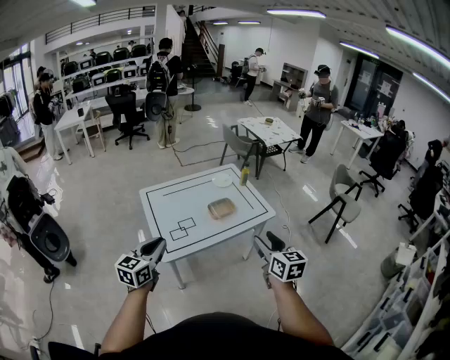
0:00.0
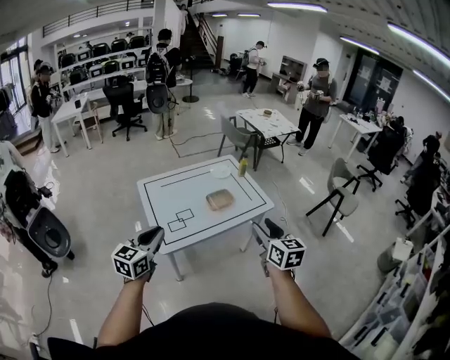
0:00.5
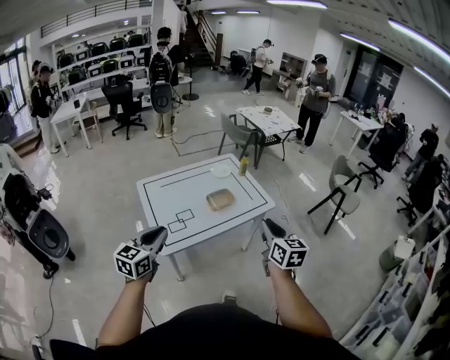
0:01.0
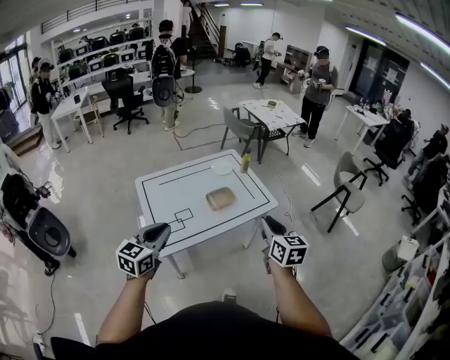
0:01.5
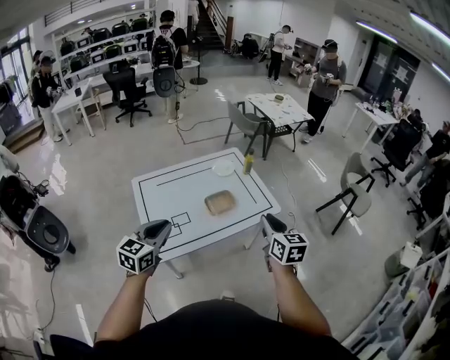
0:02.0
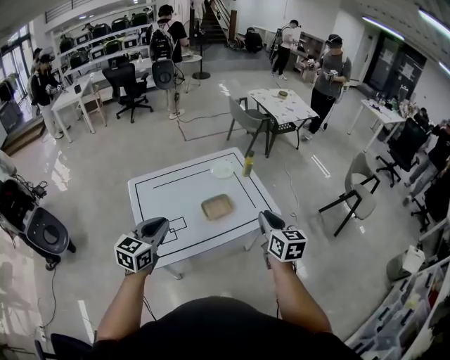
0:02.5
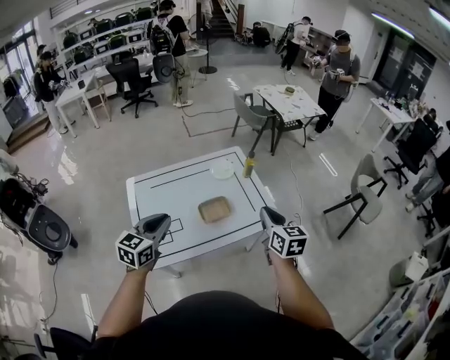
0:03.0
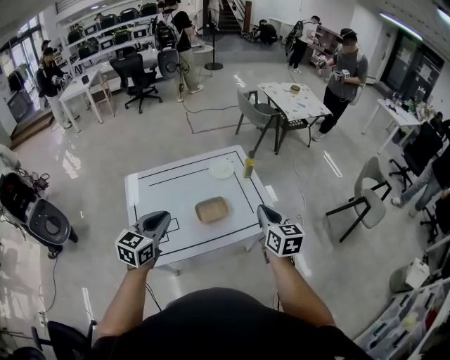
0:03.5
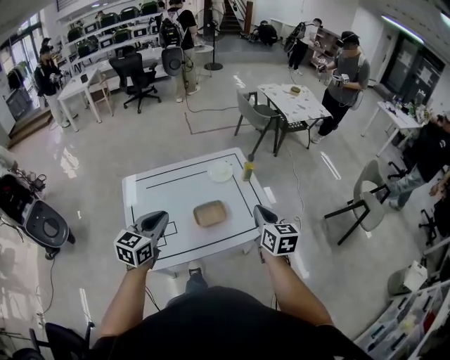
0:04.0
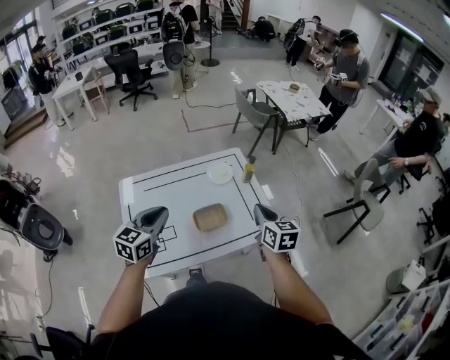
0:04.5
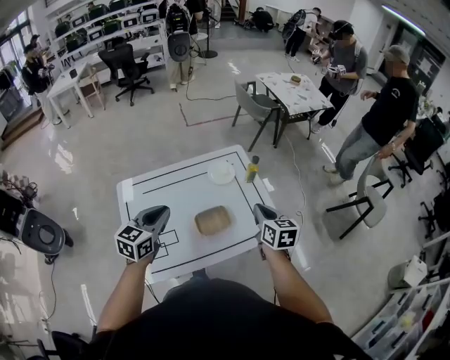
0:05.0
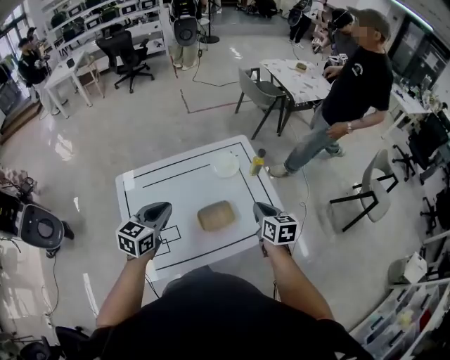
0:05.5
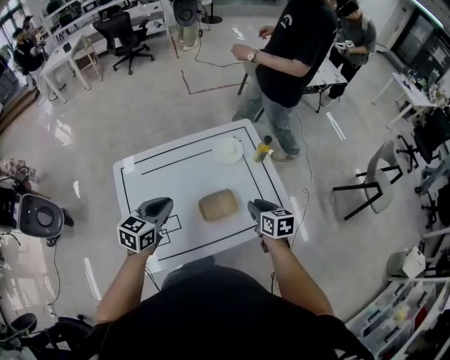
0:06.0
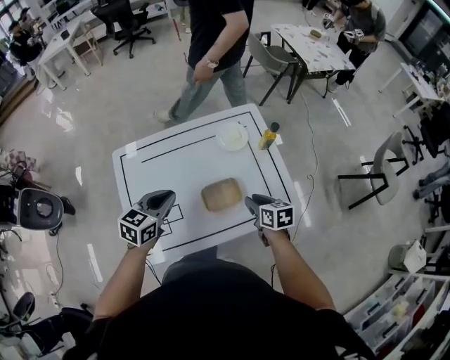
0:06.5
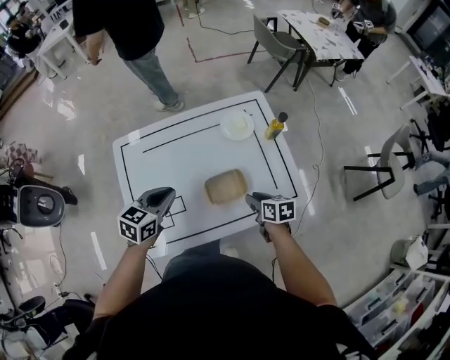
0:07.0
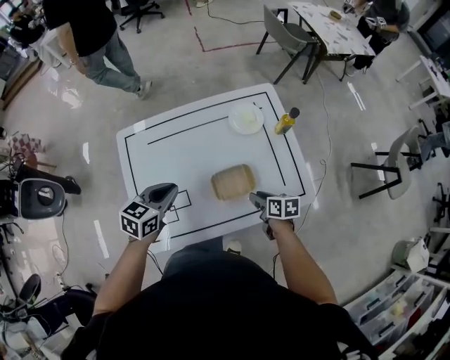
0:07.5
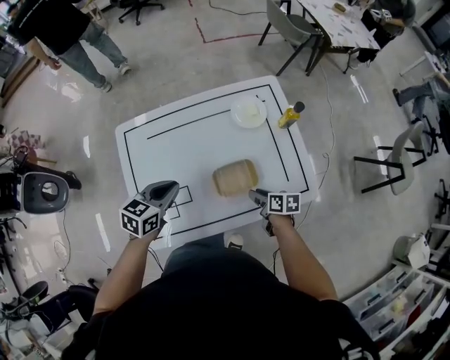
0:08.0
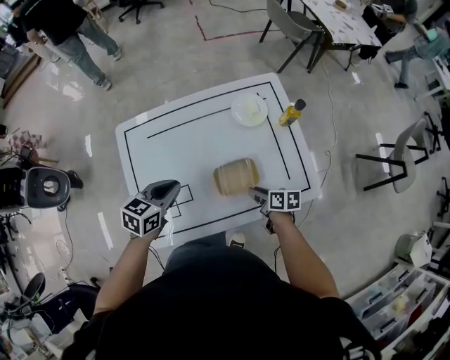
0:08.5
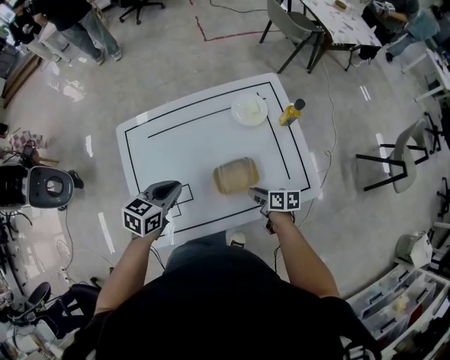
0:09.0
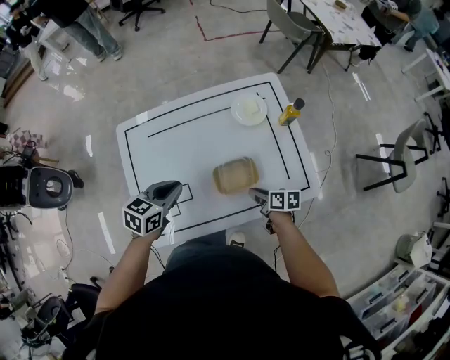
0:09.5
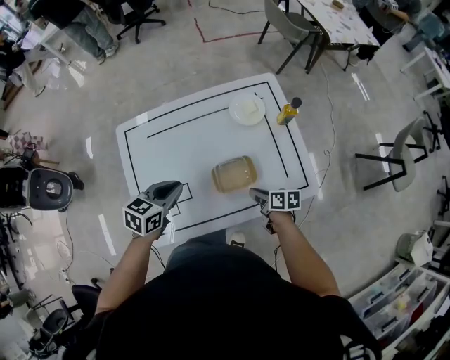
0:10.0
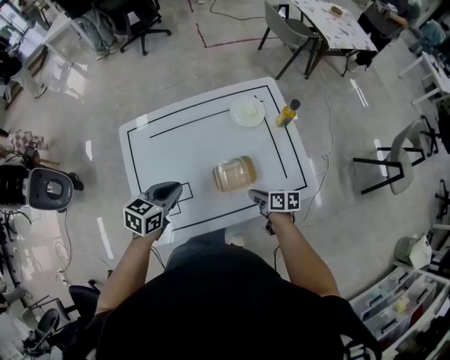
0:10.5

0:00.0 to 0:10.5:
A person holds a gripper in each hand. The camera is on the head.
0:00.0 to 0:02.0: Both grippers move forward, roughly 20 cm. The right gripper closes.
0:02.0 to 0:04.0: The left gripper goes about 20 cm forward and to the right, while the right gripper goes about 20 cm forward.
0:04.0 to 0:06.5: The left gripper is displaced forward and downward by approximately 25 cm, while the right gripper shifts some 30 cm downward and forward, rotates approximately 30 degrees, and opens up.
0:06.5 to 0:08.5: The right gripper moves downward, roughly 10 cm, and turns by roughly 20 degrees. Meanwhile the left gripper goes some 5 cm downward.
0:08.5 to 0:10.5: There are only small adjustments of the grippers.

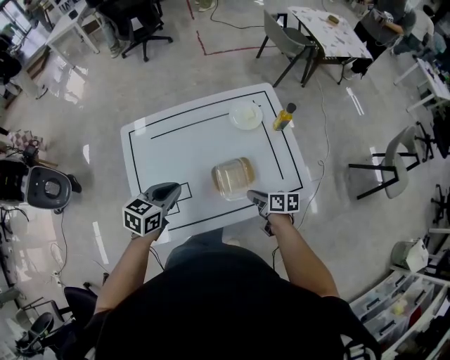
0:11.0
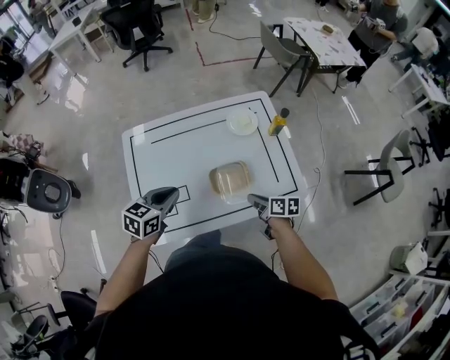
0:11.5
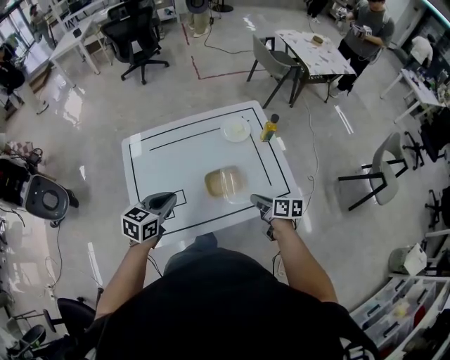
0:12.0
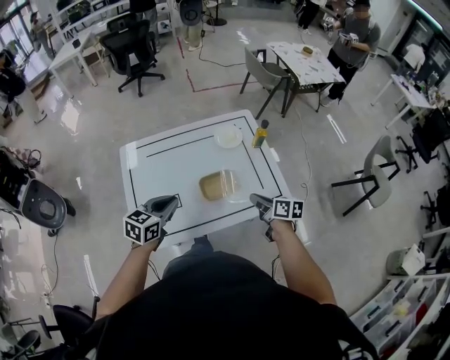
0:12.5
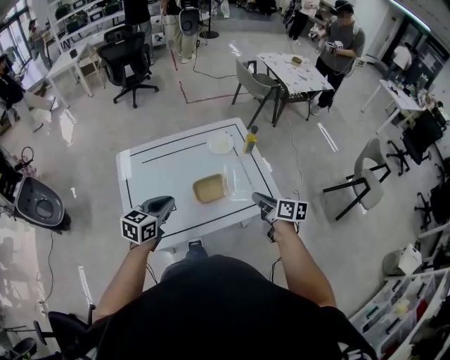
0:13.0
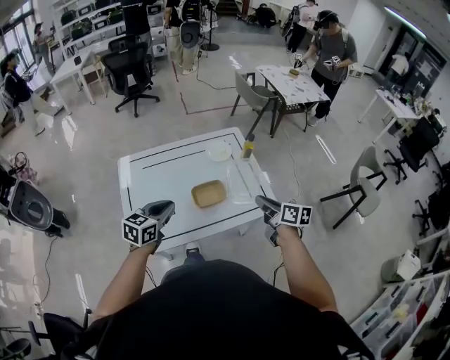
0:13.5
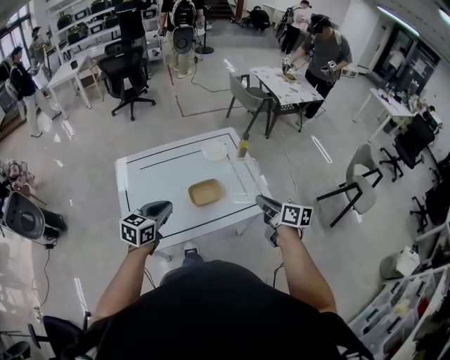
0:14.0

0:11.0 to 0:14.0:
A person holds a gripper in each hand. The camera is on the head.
0:11.0 to 0:12.5: The right gripper goes about 15 cm upward, to the right and backward, while the left gripper travels backward and upward by about 10 cm.
0:12.5 to 0:14.0: The right gripper moves upward, backward and to the right, roughly 15 cm; the left gripper travels backward by roughly 5 cm.

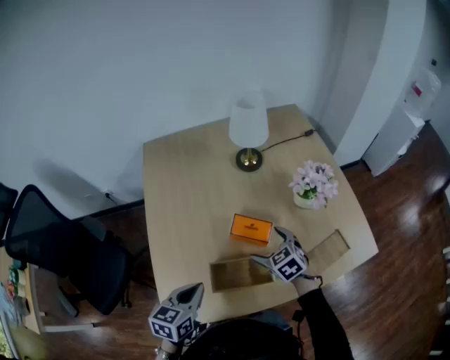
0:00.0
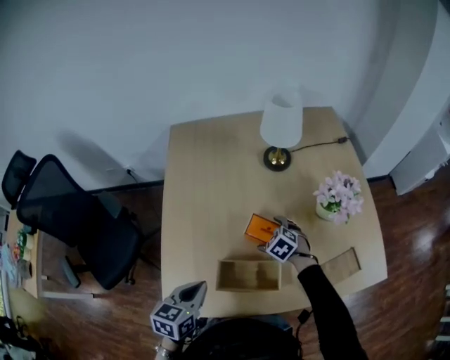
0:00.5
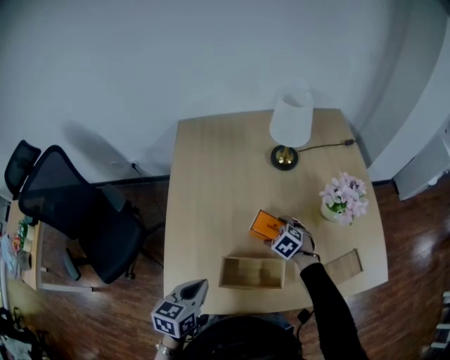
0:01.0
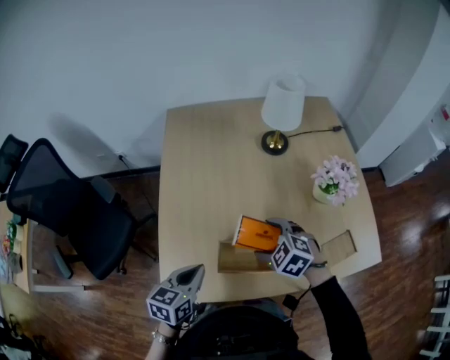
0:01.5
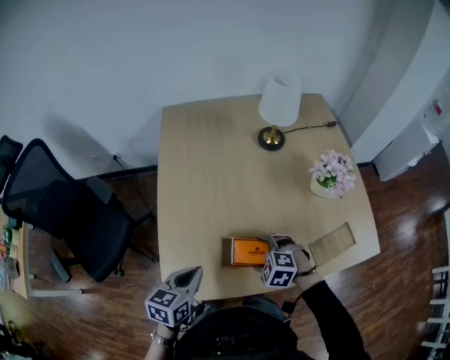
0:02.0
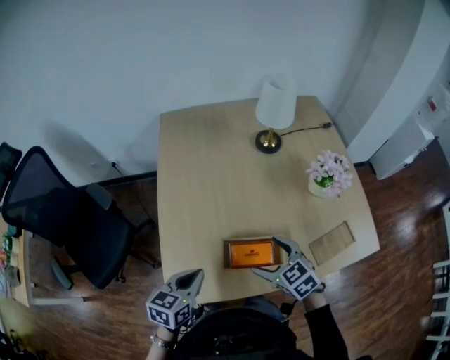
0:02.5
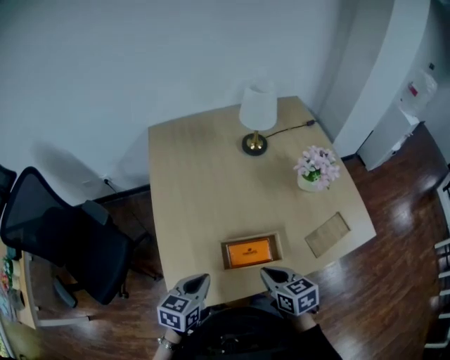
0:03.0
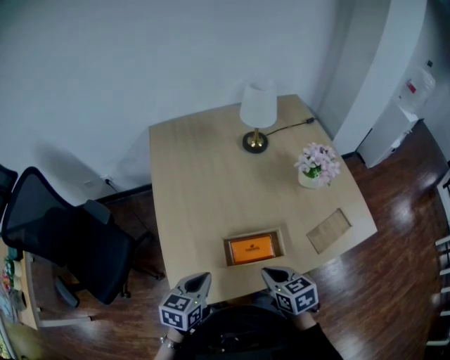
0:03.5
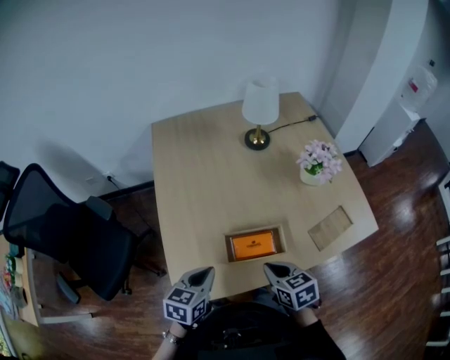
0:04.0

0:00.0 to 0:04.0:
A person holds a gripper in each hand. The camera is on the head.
0:00.0 to 0:02.0: The right gripper shifts some 10 cm backward and to the left, and changes its angle by roughly 40 degrees.
0:02.0 to 0:04.0: The right gripper moves upward and backward, some 10 cm, twists some 60 degrees clockwise, seen from behind, and closes its fingers.

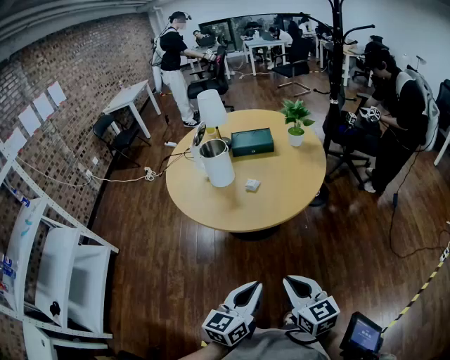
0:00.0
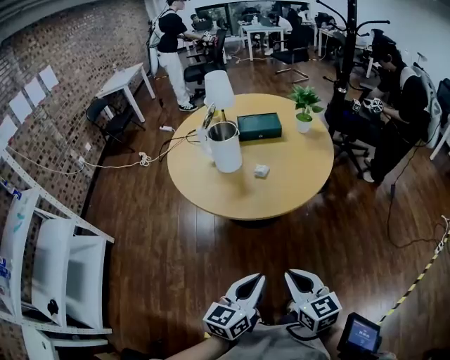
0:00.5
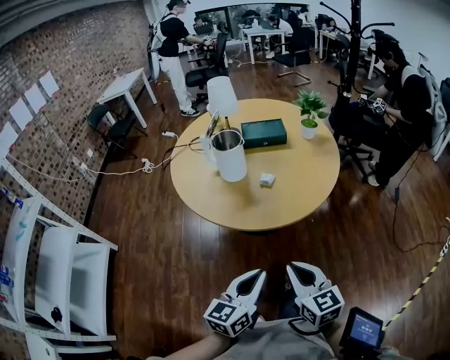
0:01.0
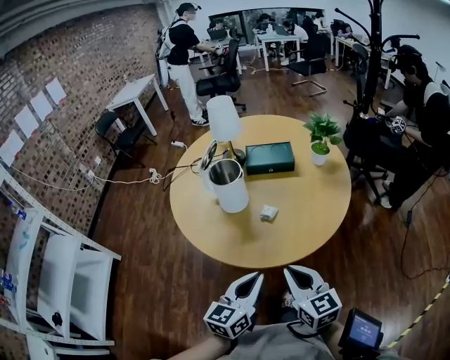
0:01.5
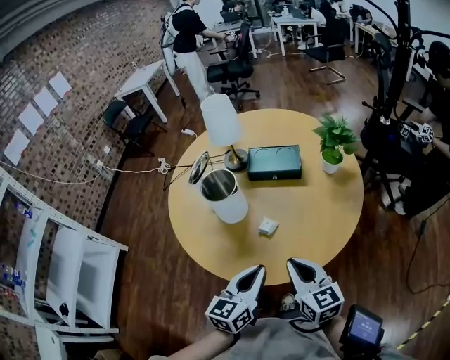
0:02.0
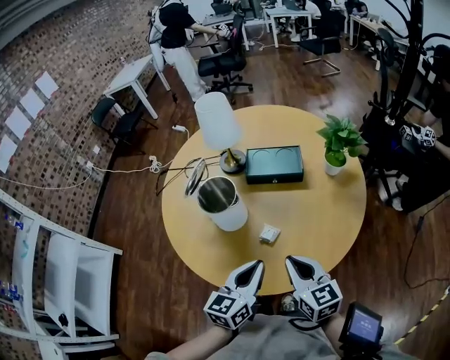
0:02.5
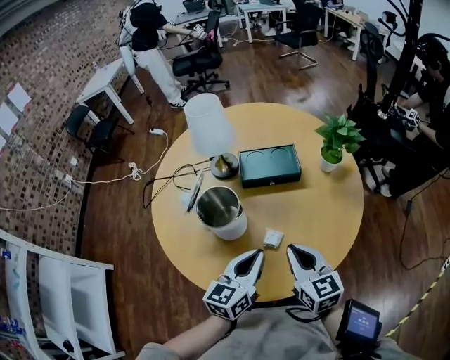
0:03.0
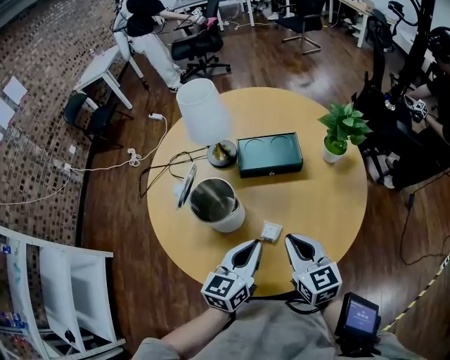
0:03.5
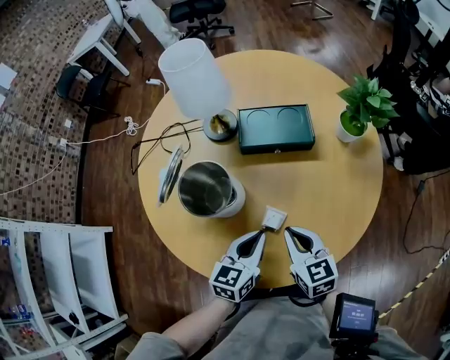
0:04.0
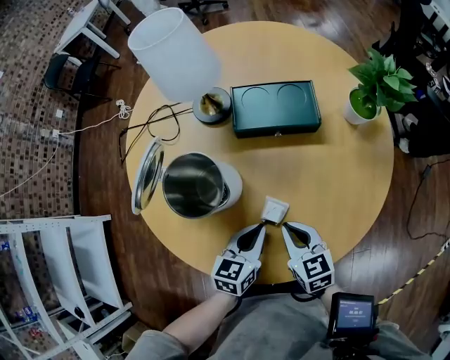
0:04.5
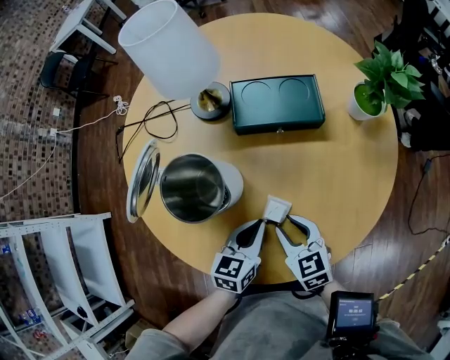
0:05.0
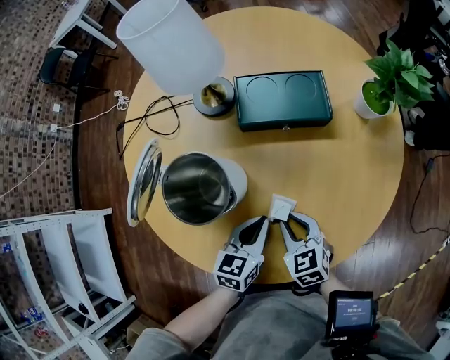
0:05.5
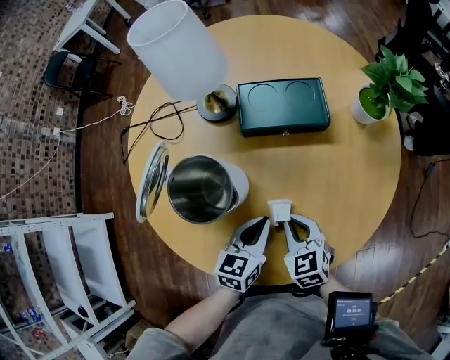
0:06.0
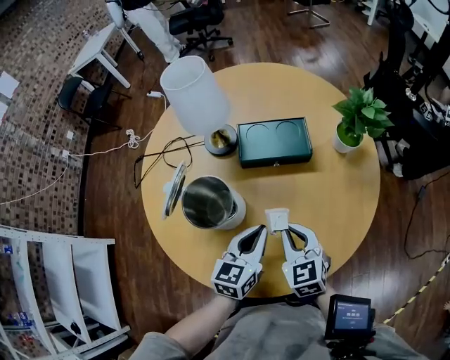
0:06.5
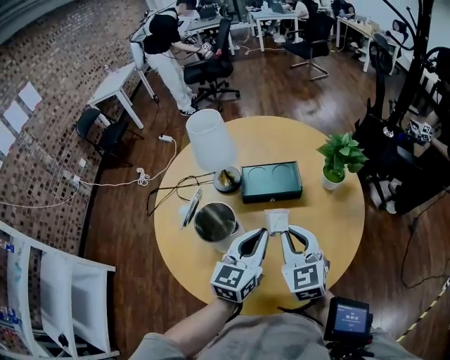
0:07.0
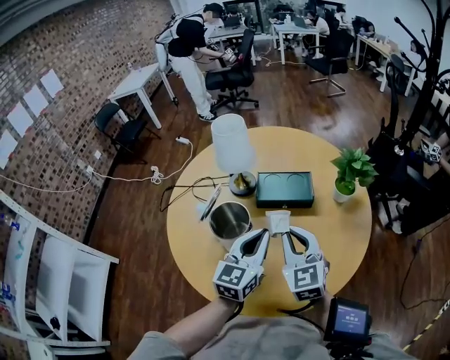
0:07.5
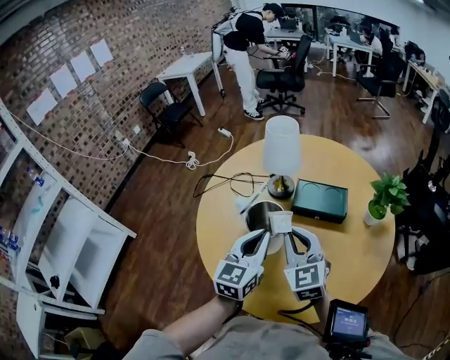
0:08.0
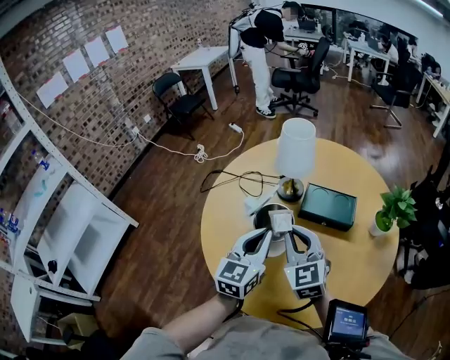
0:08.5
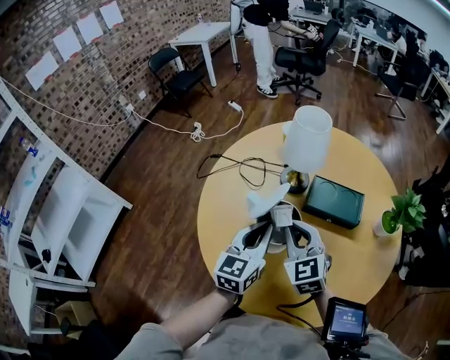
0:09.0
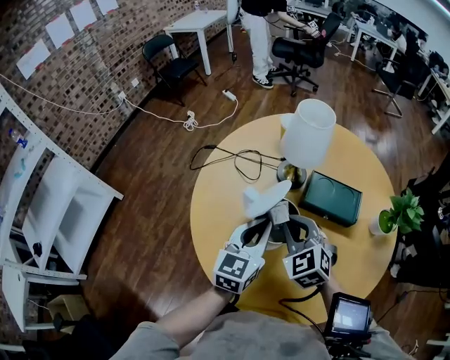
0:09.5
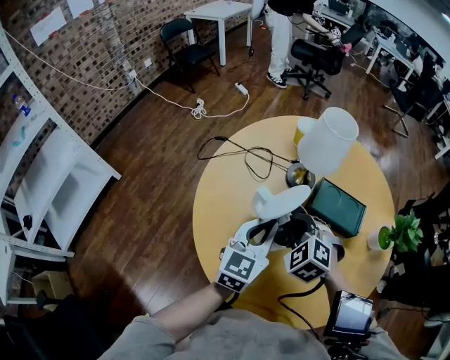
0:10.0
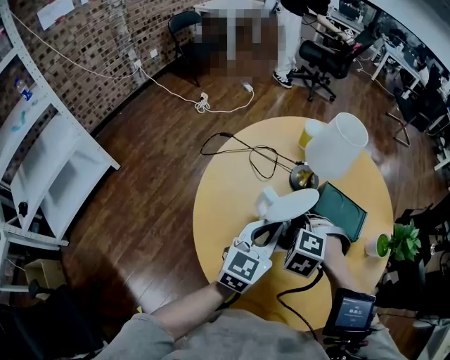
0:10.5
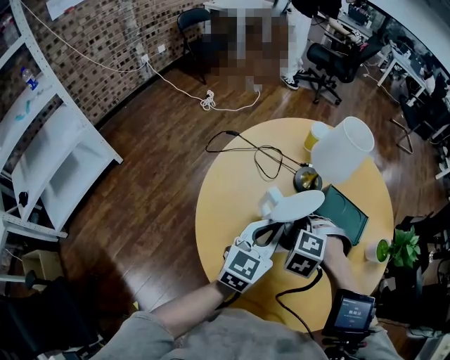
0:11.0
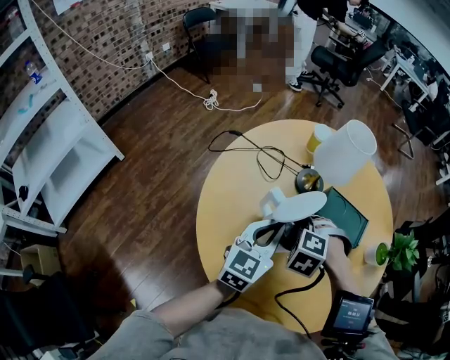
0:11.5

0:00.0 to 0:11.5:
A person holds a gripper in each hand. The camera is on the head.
0:00.0 to 0:02.0: Both grippers move forward, some 35 cm.
0:02.0 to 0:04.0: The left gripper heads forward and downward, covering some 20 cm. Meanwhile the right gripper travels forward, downward and to the left by about 20 cm.
0:04.0 to 0:06.0: The grippers both shift downward by some 10 cm. The right gripper opens and closes again.
0:06.0 to 0:07.5: Both grippers travel together upward, some 25 cm. The right gripper changes its angle by roughly 30 degrees. The left gripper rotates some 30 degrees.
0:07.5 to 0:09.5: The right gripper shifts about 20 cm to the left, forward and downward, and rotates approximately 40 degrees; the left gripper goes approximately 15 cm to the left and forward.
0:09.5 to 0:11.5: The right gripper travels downward by roughly 5 cm, and angles its fingers downward, by approximately 40 degrees.
